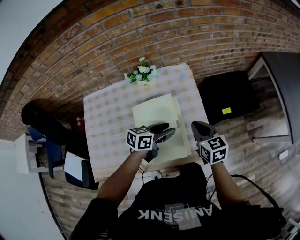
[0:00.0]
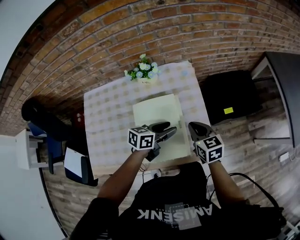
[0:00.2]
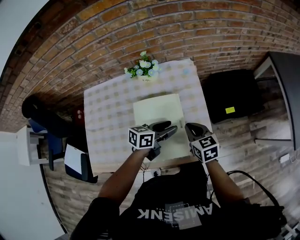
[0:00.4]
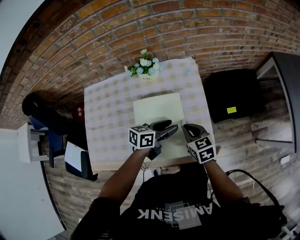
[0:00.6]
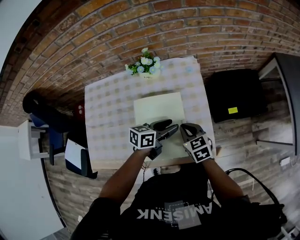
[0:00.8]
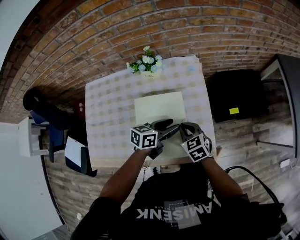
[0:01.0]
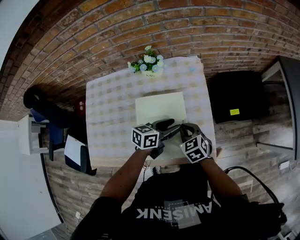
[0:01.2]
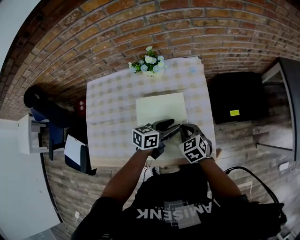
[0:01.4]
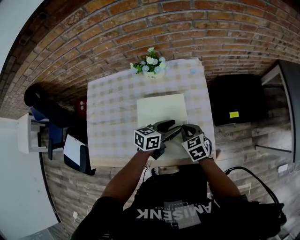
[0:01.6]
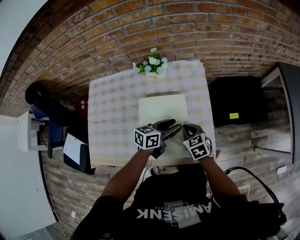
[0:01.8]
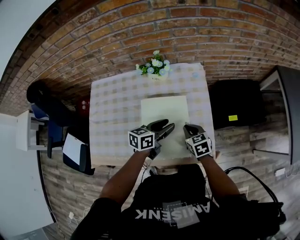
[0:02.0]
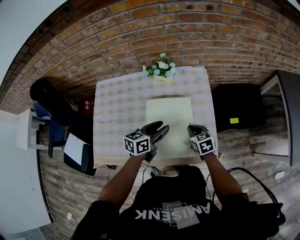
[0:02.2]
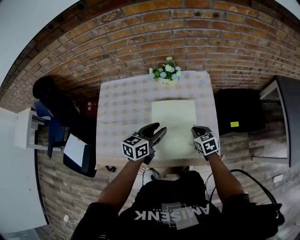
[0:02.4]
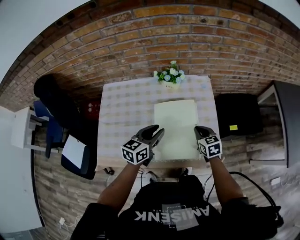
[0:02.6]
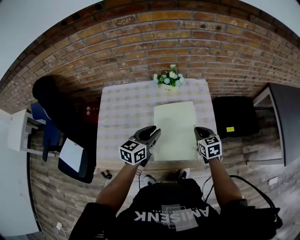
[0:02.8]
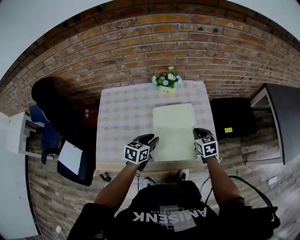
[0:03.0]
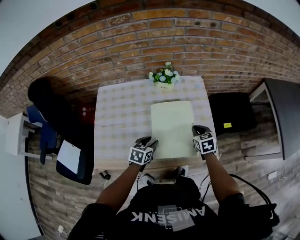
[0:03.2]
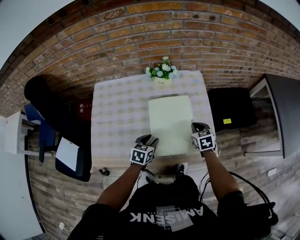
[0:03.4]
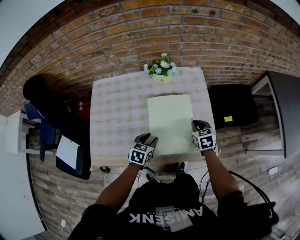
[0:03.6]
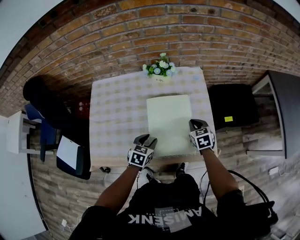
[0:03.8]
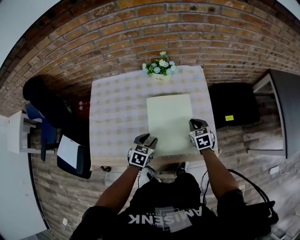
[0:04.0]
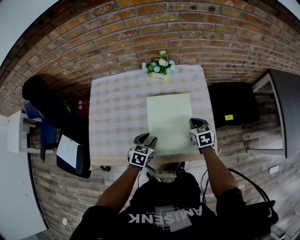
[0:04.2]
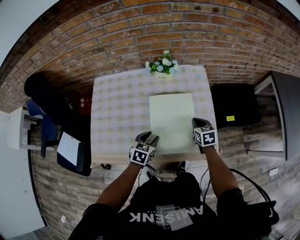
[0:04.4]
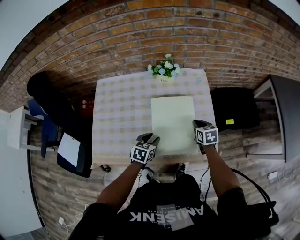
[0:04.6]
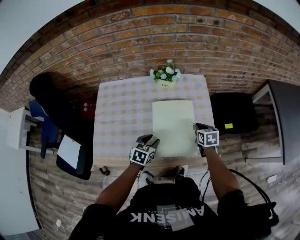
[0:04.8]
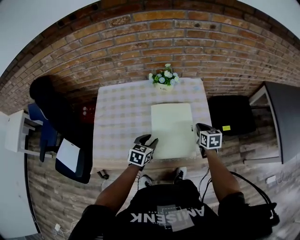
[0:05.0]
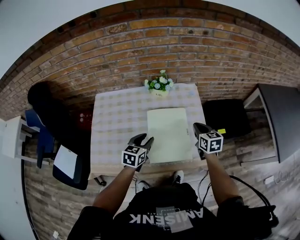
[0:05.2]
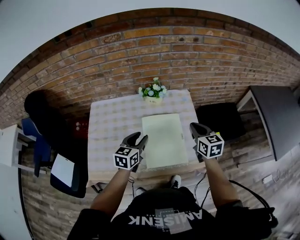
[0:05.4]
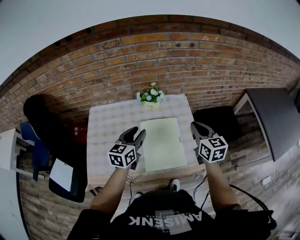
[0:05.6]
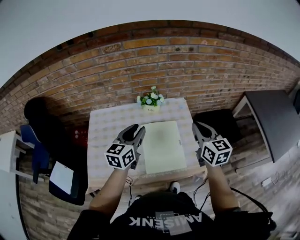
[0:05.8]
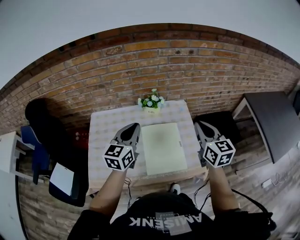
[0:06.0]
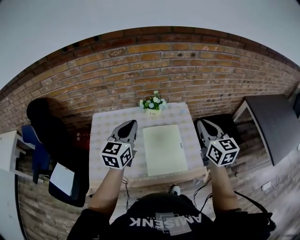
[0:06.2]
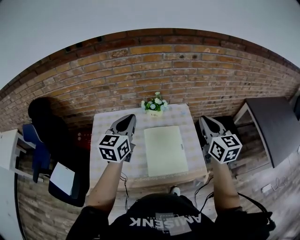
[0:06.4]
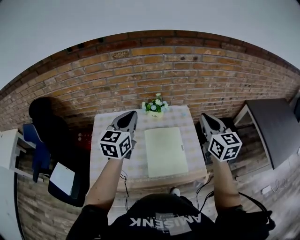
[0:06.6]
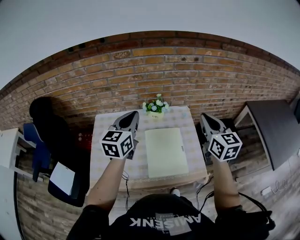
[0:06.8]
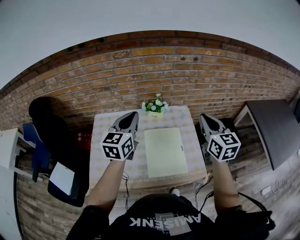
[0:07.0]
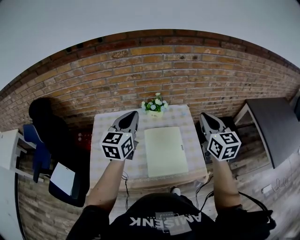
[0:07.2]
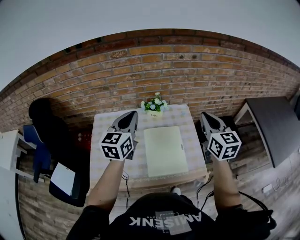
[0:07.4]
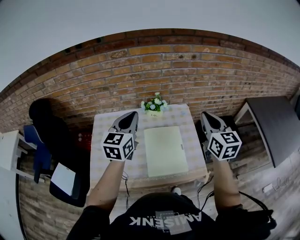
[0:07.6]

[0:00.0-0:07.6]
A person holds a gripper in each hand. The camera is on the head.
0:00.0 to 0:01.6: The right gripper travels downward and to the left by about 10 cm, and rotates roughly 30 degrees. The left gripper changes place by about 5 cm.
0:01.6 to 0:03.0: The left gripper is displaced to the left and backward by some 20 cm, swivels about 20 degrees, and closes; the right gripper is displaced upward by approximately 5 cm.
0:03.0 to 0:04.6: The grippers both shift downward by approximately 5 cm.
0:04.6 to 0:06.0: Both grippers travel together upward, some 30 cm. The left gripper points its fingers approximately 40 degrees further upward, and closes. Meanwhile the right gripper tips its fingers upward by about 40 degrees.
0:06.0 to 0:07.6: The grippers both shift upward by some 5 cm.

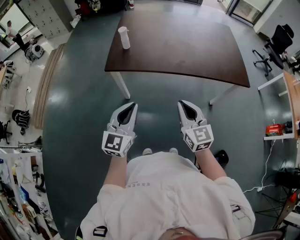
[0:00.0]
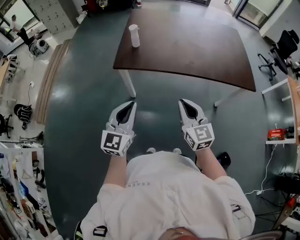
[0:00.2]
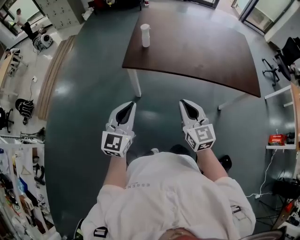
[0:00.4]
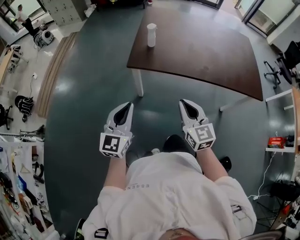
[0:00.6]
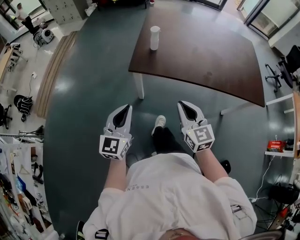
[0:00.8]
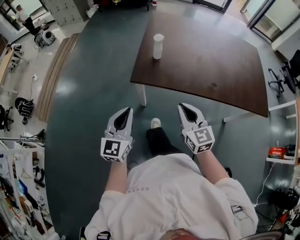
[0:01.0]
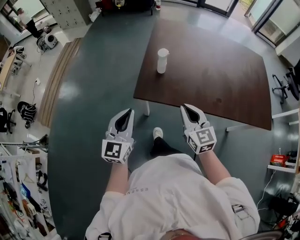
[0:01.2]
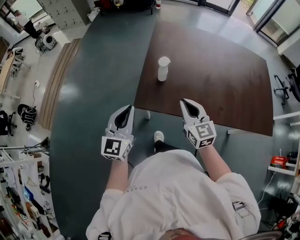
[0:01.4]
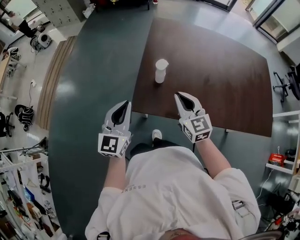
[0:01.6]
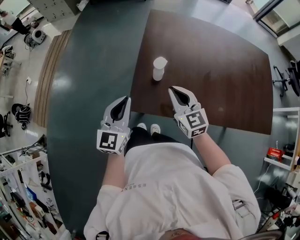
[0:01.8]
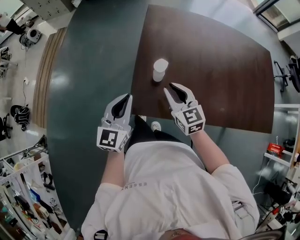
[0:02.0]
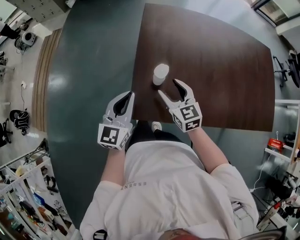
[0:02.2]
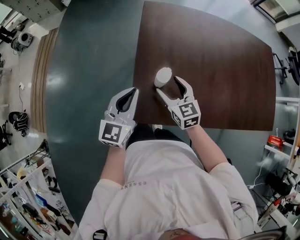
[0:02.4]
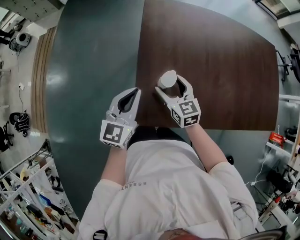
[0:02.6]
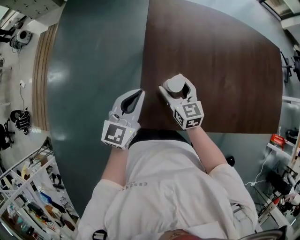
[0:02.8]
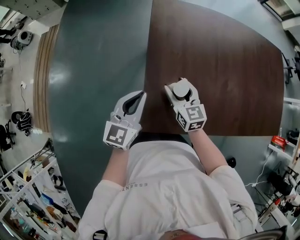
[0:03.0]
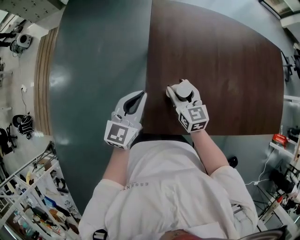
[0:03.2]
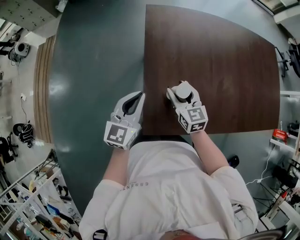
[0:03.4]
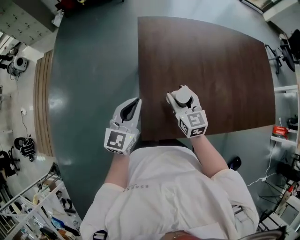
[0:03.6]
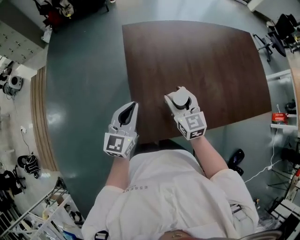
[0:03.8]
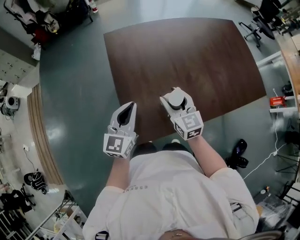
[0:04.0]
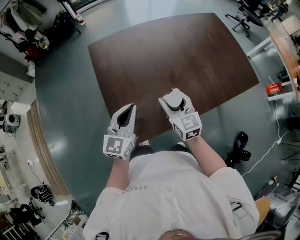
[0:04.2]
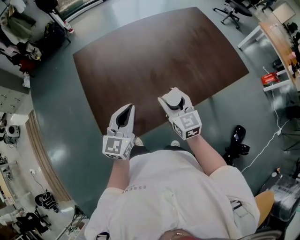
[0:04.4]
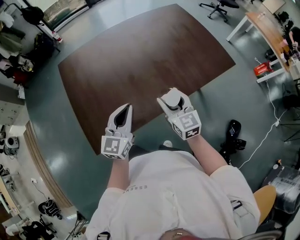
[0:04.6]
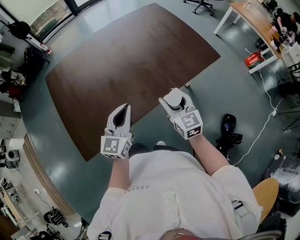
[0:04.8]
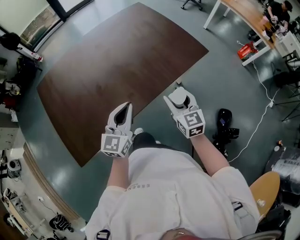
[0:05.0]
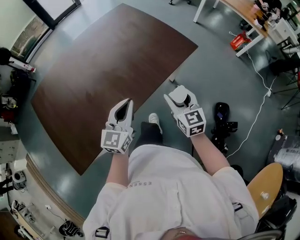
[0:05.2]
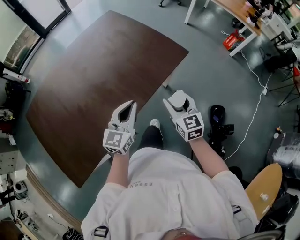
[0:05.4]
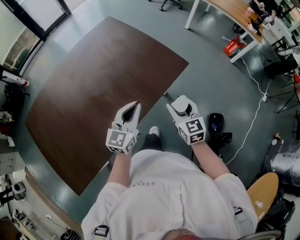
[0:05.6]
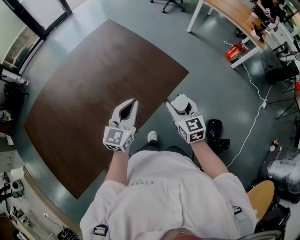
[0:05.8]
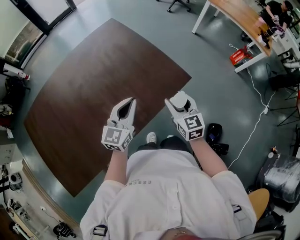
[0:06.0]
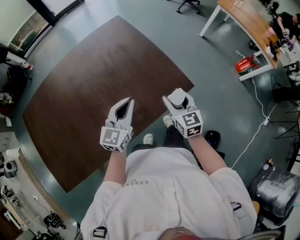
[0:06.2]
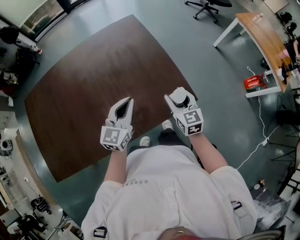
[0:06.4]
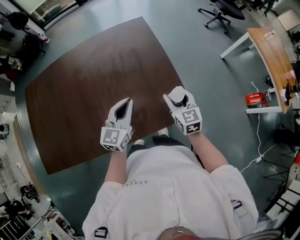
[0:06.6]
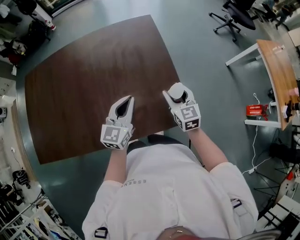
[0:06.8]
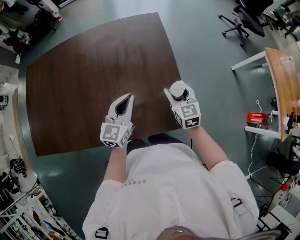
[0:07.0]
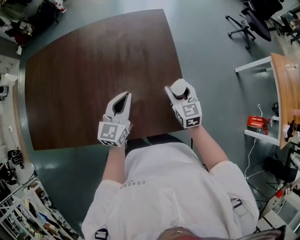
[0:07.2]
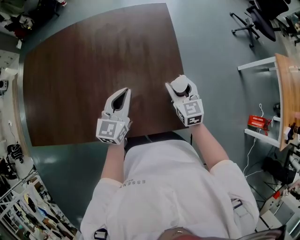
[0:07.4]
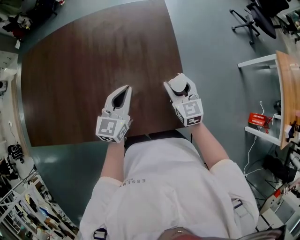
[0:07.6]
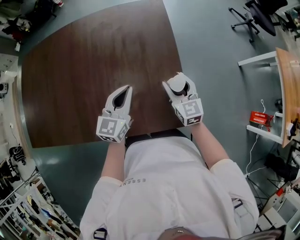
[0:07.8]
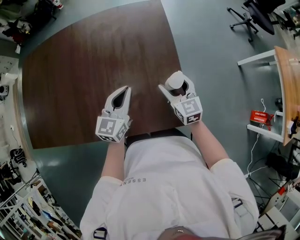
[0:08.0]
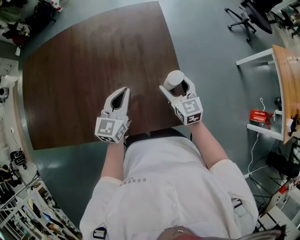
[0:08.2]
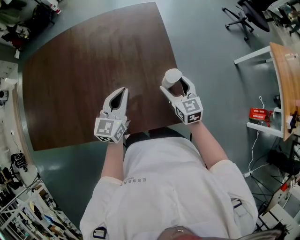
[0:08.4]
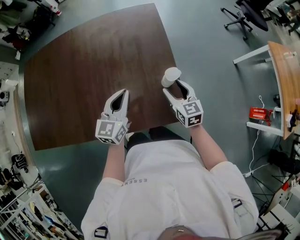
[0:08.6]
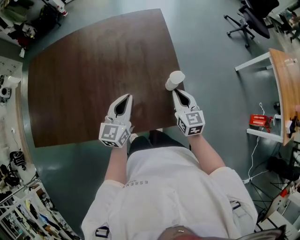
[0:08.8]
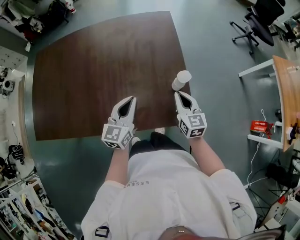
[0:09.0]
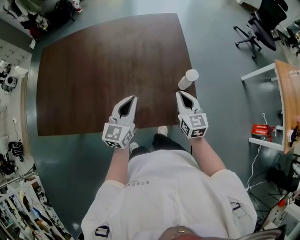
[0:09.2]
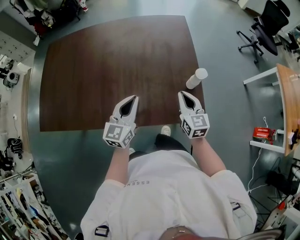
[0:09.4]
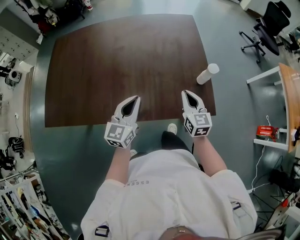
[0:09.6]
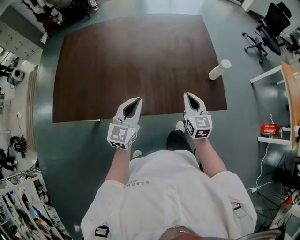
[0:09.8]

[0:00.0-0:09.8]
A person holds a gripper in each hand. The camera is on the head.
0:00.0 to 0:01.4: Both grippers travel together forward and to the left, roughly 35 cm.
0:01.4 to 0:02.8: The right gripper moves forward and downward, approximately 25 cm, and opens its fingers. The left gripper moves forward, roughly 20 cm.
0:02.8 to 0:04.2: The right gripper travels to the right and upward by approximately 20 cm, rotates approximately 20 degrees, and closes up. The left gripper heads to the right, covering approximately 10 cm.
0:04.2 to 0:05.6: Both grippers are carried approximately 60 cm. The left gripper turns by roughly 30 degrees. Meanwhile the right gripper turns by about 30 degrees.
0:05.6 to 0:07.0: The left gripper moves some 25 cm, and changes its angle by approximately 40 degrees; the right gripper moves roughly 35 cm, and turns by approximately 40 degrees.
0:07.0 to 0:08.4: The grippers move only a little.
0:08.4 to 0:09.8: The two grippers go roughly 25 cm to the left and backward. The right gripper closes up.

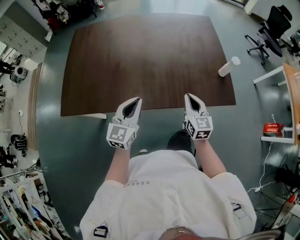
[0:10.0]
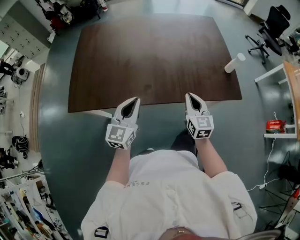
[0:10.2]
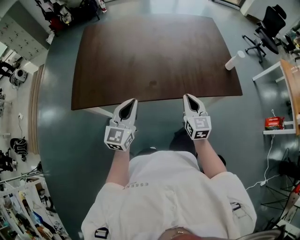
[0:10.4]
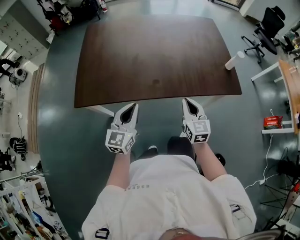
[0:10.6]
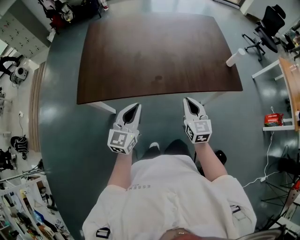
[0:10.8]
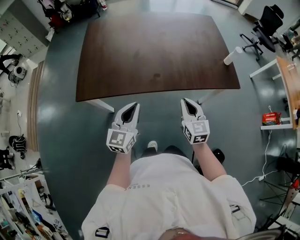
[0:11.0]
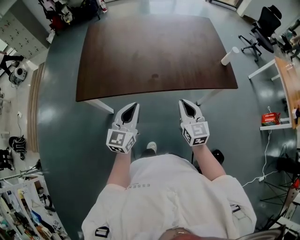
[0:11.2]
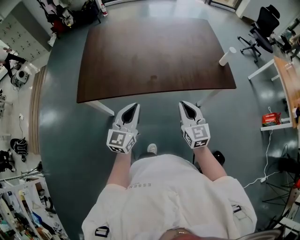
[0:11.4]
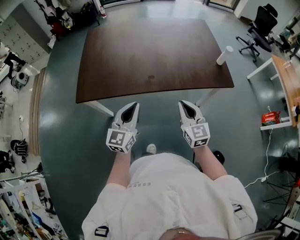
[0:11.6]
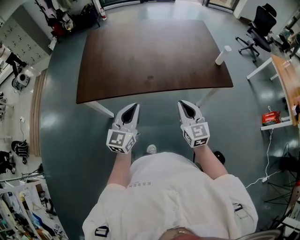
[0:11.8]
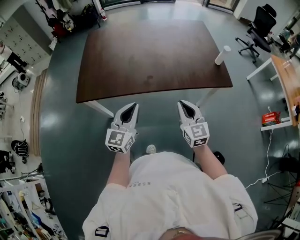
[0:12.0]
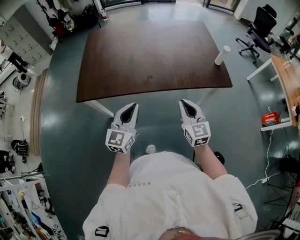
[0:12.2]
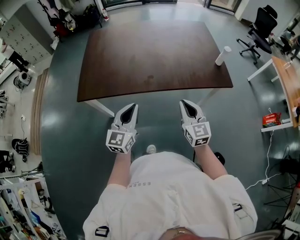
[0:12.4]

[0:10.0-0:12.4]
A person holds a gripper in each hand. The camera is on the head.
0:10.0 to 0:11.2: The grippers both shift backward and to the left by roughly 20 cm.
0:11.2 to 0:12.4: The right gripper changes place by roughly 5 cm.

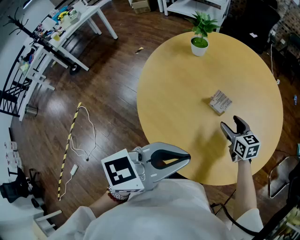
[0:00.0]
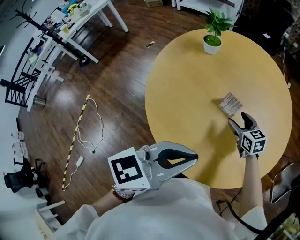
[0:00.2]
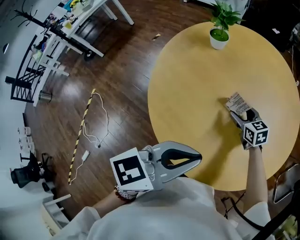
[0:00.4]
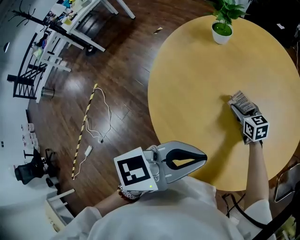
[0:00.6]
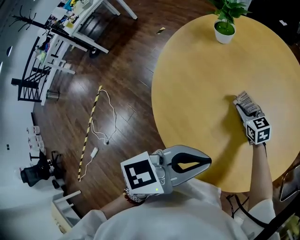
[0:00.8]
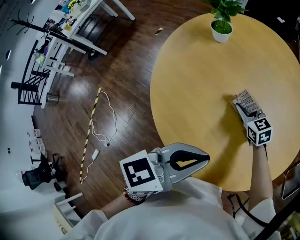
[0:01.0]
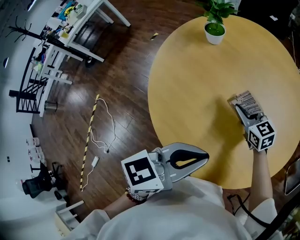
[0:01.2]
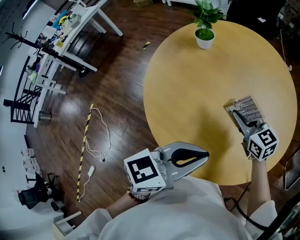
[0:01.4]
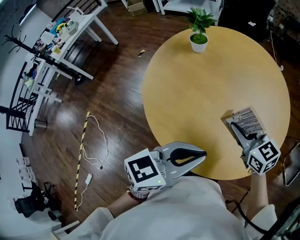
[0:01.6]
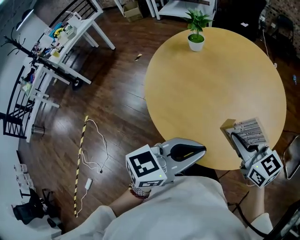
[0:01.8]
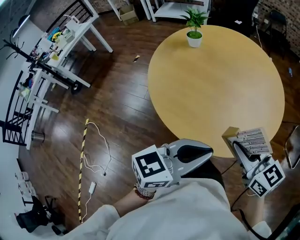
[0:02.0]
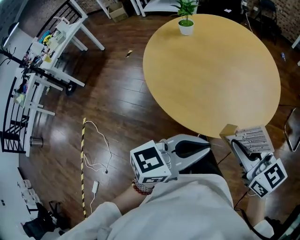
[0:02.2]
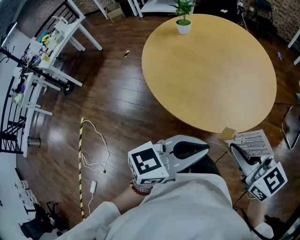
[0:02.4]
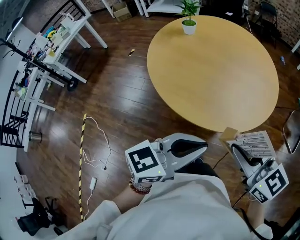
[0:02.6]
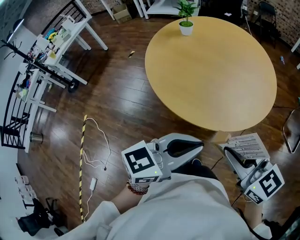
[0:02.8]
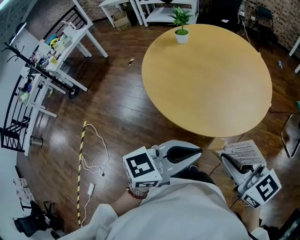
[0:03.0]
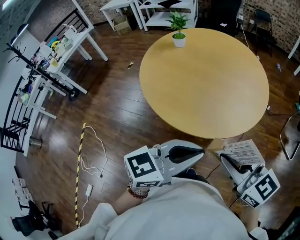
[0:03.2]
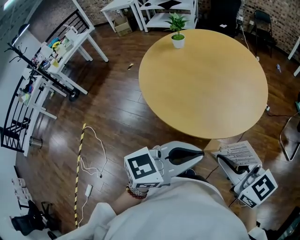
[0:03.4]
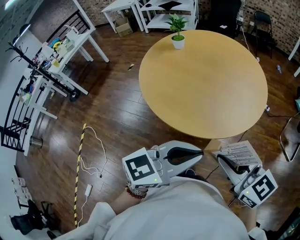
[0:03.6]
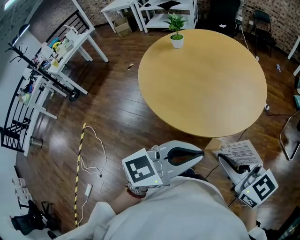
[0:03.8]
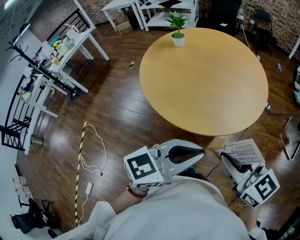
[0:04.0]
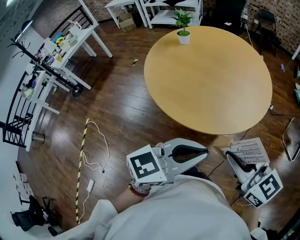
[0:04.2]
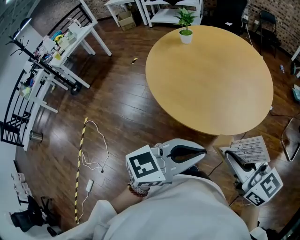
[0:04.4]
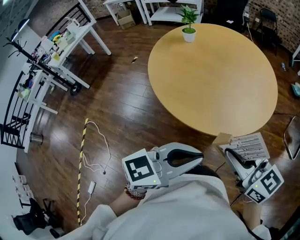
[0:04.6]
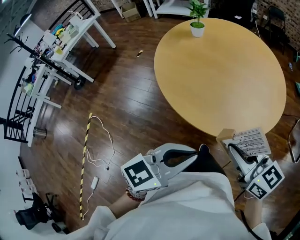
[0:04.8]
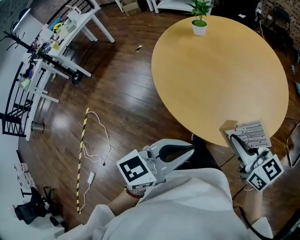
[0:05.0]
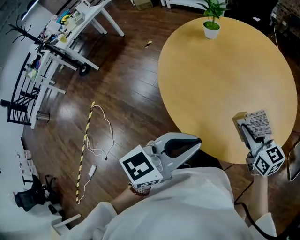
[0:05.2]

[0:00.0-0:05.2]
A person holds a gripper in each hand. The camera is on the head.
0:00.0 to 0:01.8: The left gripper reaches about 10 cm forward, then returns. The right gripper goes roughly 25 cm upward and backward, and closes.
0:01.8 to 0:03.4: The left gripper shifts some 20 cm backward and to the right, while the right gripper goes approximately 25 cm backward.
0:03.4 to 0:05.2: The left gripper shifts roughly 20 cm forward and to the left, and rotates about 20 degrees, while the right gripper moves forward and downward, some 30 cm.
